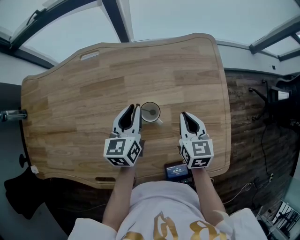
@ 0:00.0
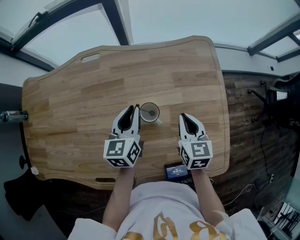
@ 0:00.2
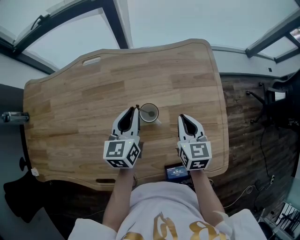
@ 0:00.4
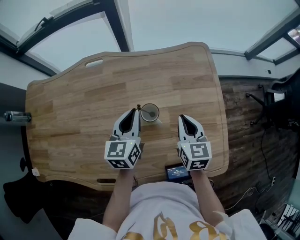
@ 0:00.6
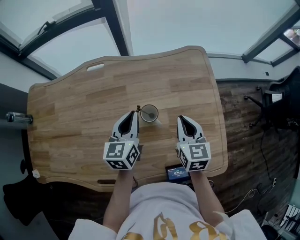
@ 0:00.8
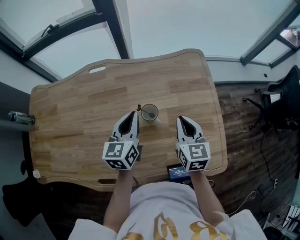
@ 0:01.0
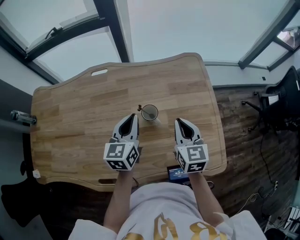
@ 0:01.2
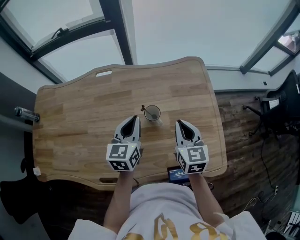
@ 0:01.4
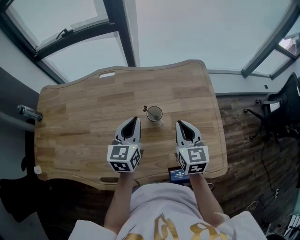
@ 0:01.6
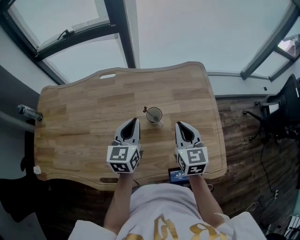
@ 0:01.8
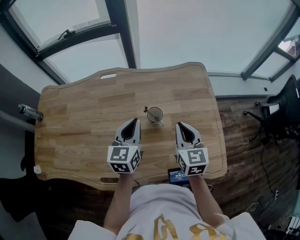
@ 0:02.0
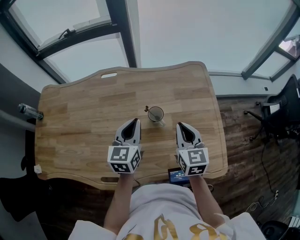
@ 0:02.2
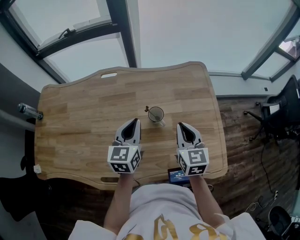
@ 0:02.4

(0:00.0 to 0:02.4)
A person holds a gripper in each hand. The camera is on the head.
0:00.0 - 0:01.2: Both grippers travel together upward and backward, about 10 cm.
0:01.2 - 0:02.4: The grippers make only small movements.

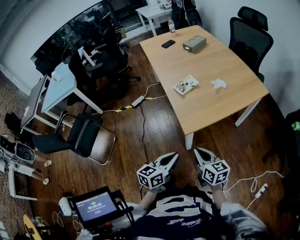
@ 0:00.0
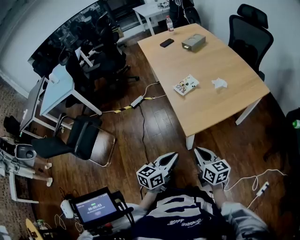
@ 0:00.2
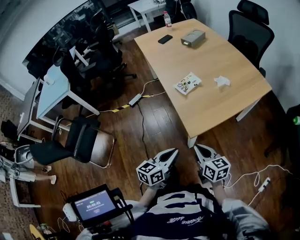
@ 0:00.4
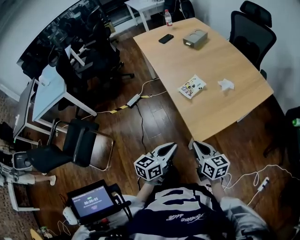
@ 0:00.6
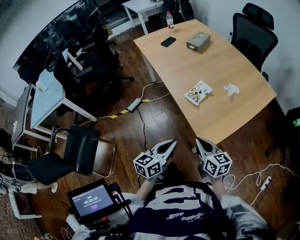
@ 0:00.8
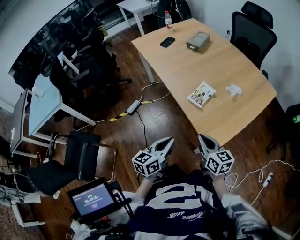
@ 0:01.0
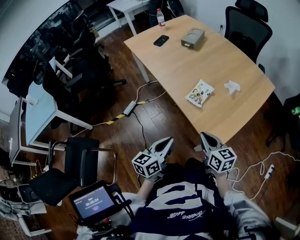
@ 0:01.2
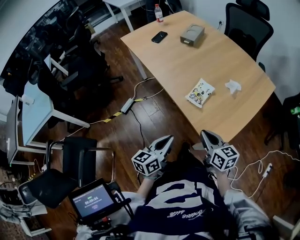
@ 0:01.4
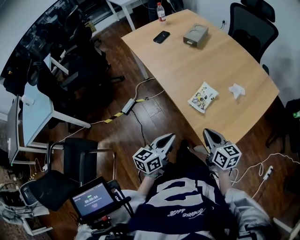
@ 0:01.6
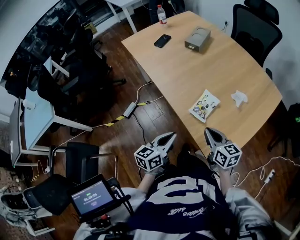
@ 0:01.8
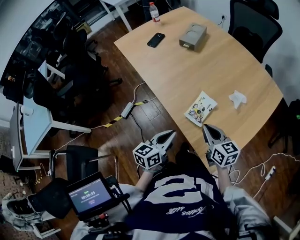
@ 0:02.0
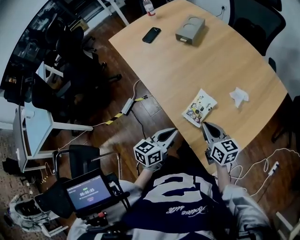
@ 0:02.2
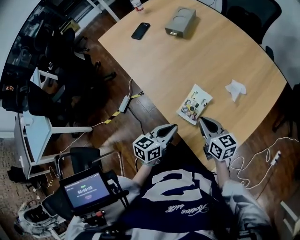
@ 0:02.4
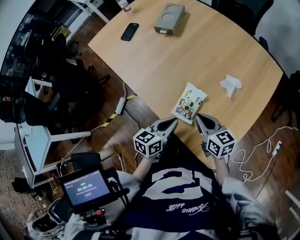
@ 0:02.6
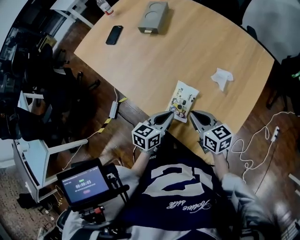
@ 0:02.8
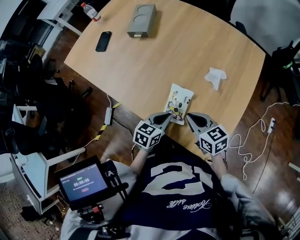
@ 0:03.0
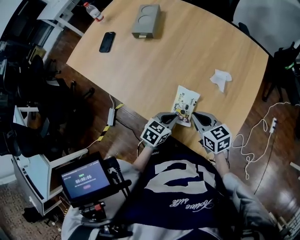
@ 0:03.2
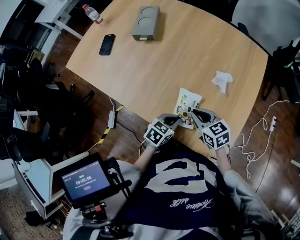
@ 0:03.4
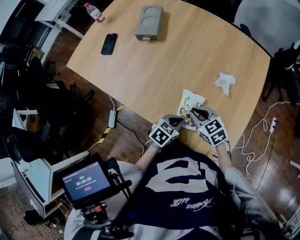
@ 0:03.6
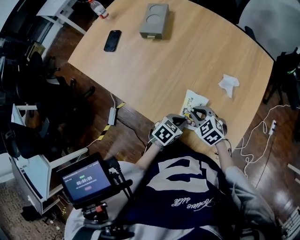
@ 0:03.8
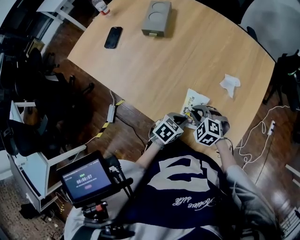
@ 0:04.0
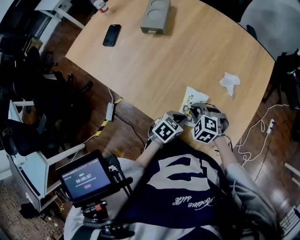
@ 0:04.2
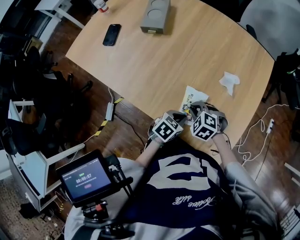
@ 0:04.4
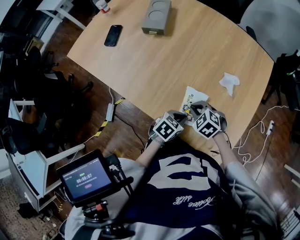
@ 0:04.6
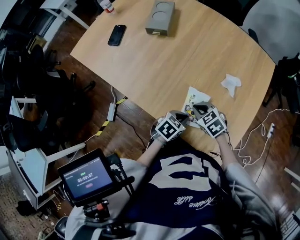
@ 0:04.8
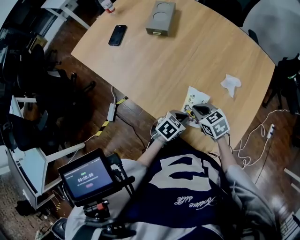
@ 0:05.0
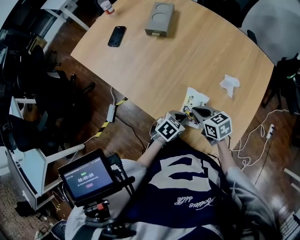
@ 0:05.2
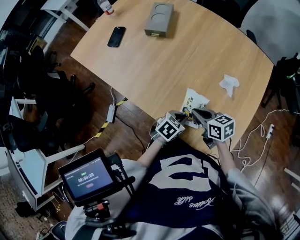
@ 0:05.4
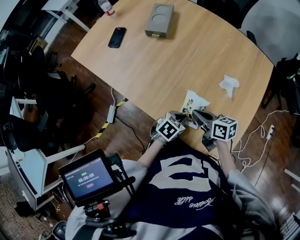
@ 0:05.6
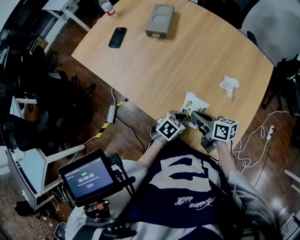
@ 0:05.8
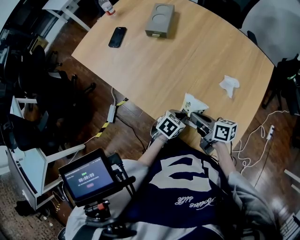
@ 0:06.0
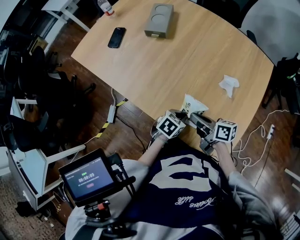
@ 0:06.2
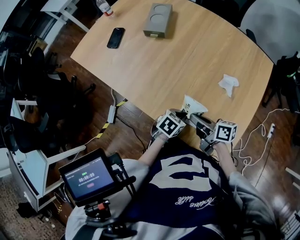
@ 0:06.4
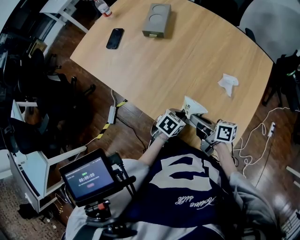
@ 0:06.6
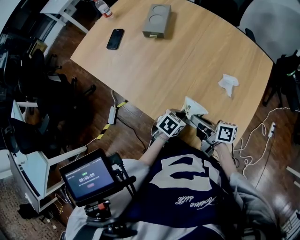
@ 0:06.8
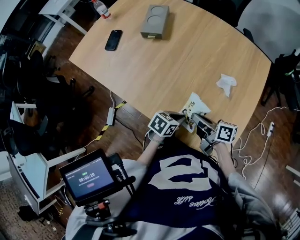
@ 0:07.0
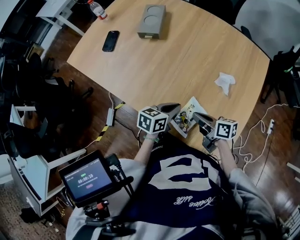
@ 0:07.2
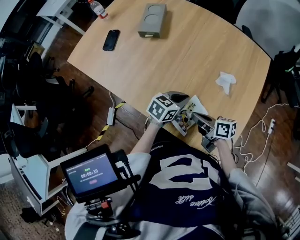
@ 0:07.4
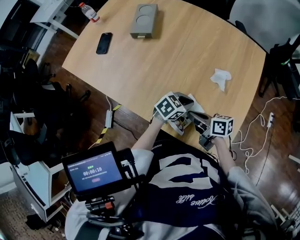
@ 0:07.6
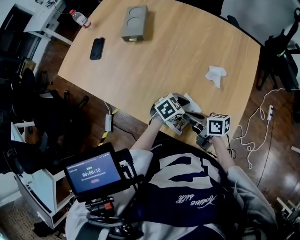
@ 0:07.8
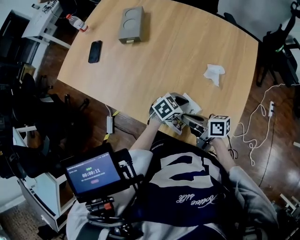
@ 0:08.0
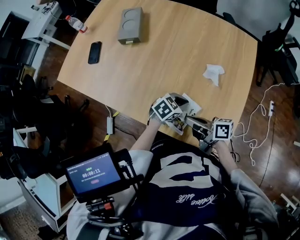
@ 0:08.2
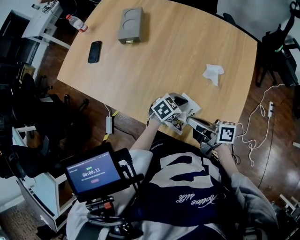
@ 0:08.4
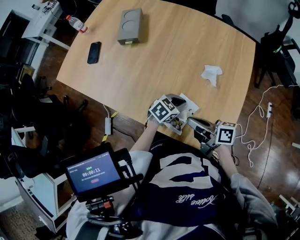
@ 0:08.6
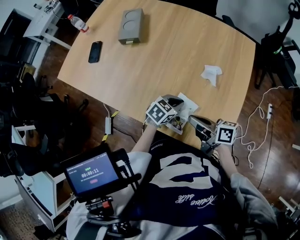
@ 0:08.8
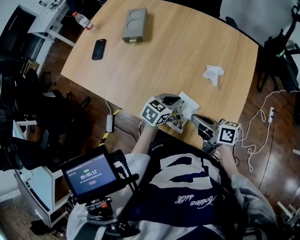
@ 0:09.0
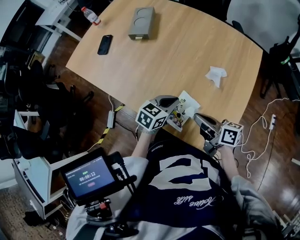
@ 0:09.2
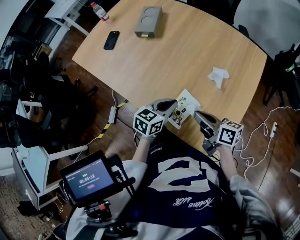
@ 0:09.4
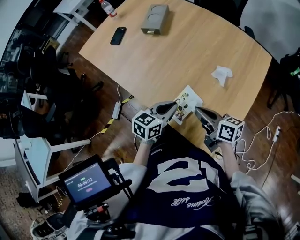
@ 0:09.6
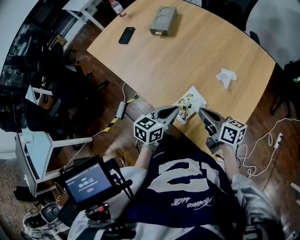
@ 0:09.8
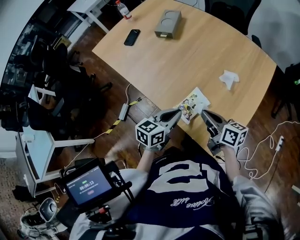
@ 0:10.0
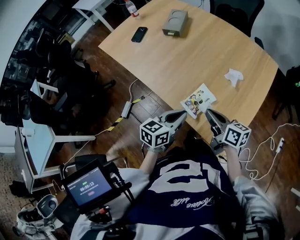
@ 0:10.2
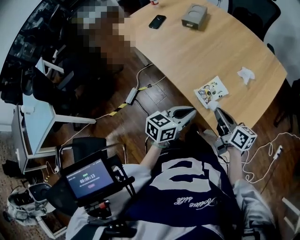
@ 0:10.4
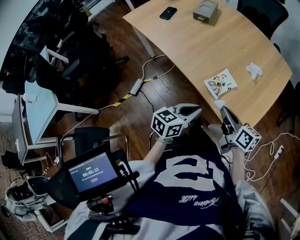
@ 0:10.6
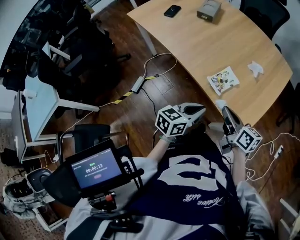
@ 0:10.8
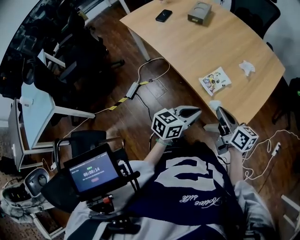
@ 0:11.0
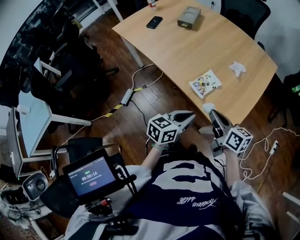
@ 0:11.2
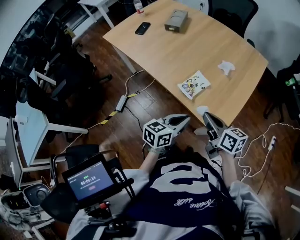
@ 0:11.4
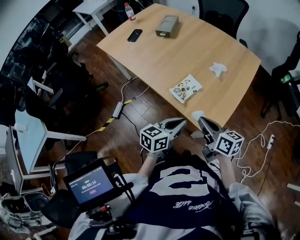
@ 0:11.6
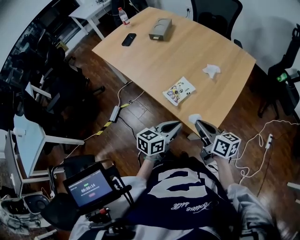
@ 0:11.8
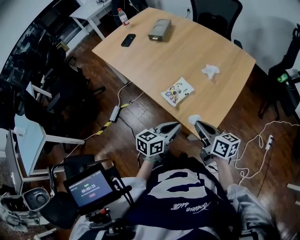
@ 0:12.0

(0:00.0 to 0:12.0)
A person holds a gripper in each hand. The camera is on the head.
0:00.0 - 0:01.6: The two grippers go roughly 35 cm forward and to the left.
0:01.6 - 0:03.0: The left gripper moves forward and downward, roughly 25 cm, and changes its angle by some 40 degrees, while the right gripper moves forward, roughly 15 cm.
0:03.0 - 0:04.4: The left gripper rotates about 20 degrees. The right gripper heads downward and to the left, covering roughly 10 cm, and points its fingers about 40 degrees further downward.
0:04.4 - 0:06.0: The right gripper travels upward by some 5 cm, and rotates around the line of its fingers by about 70 degrees, clockwise from behind.
0:06.0 - 0:07.6: The left gripper ends up about 10 cm from where it was, and swivels some 20 degrees.
0:07.6 - 0:09.0: The right gripper travels upward by about 5 cm.
0:09.0 - 0:10.4: The right gripper moves backward, some 10 cm. The left gripper is displaced backward, upward and to the left by some 25 cm, and rotates approximately 30 degrees.
0:10.4 - 0:12.0: The right gripper goes roughly 15 cm backward and to the right. Meanwhile the left gripper moves to the right and backward, some 15 cm.

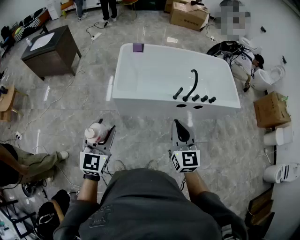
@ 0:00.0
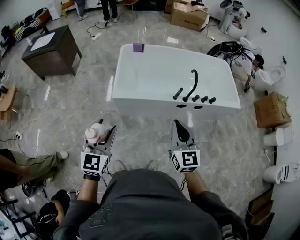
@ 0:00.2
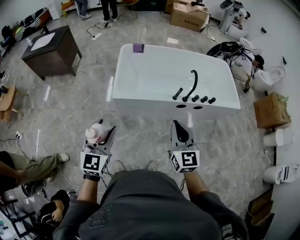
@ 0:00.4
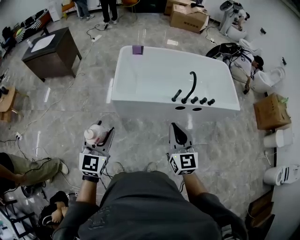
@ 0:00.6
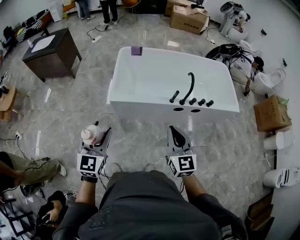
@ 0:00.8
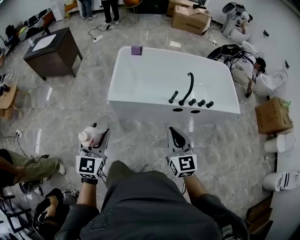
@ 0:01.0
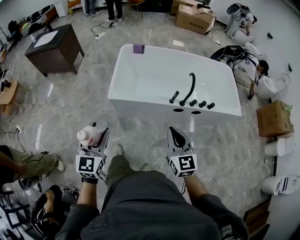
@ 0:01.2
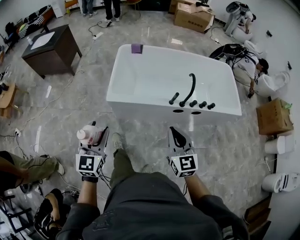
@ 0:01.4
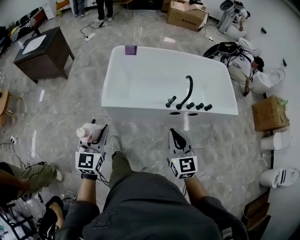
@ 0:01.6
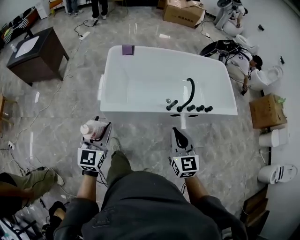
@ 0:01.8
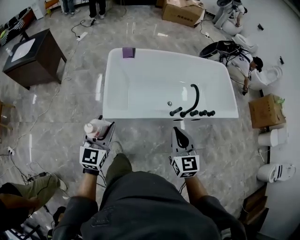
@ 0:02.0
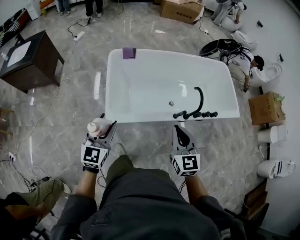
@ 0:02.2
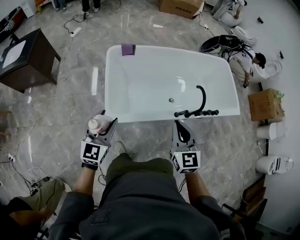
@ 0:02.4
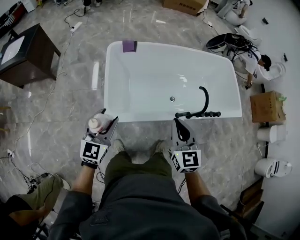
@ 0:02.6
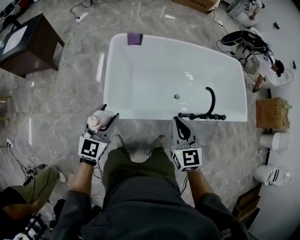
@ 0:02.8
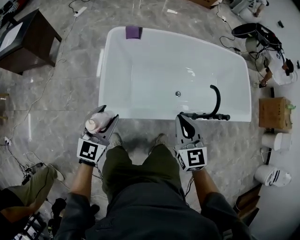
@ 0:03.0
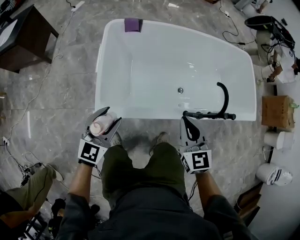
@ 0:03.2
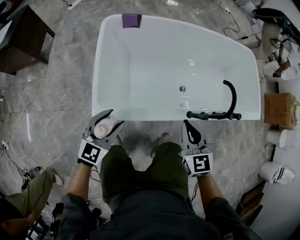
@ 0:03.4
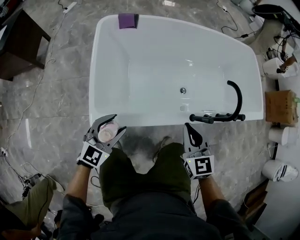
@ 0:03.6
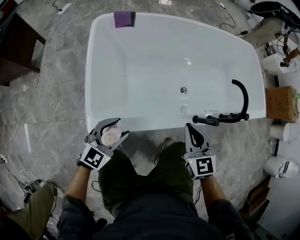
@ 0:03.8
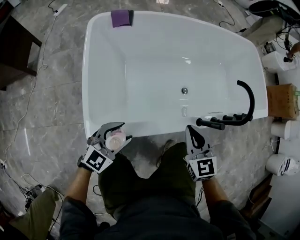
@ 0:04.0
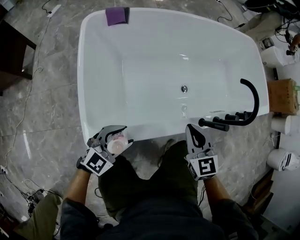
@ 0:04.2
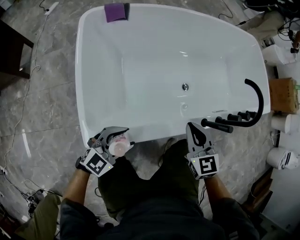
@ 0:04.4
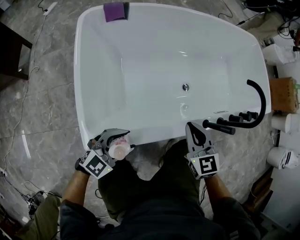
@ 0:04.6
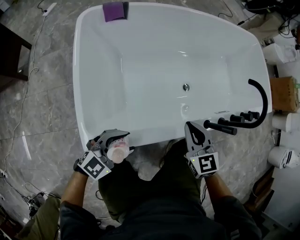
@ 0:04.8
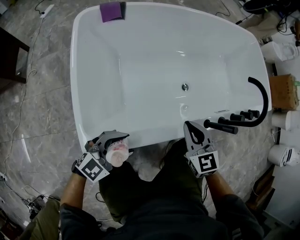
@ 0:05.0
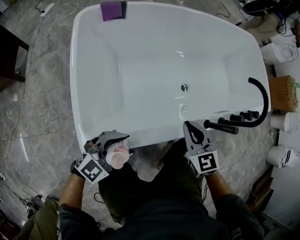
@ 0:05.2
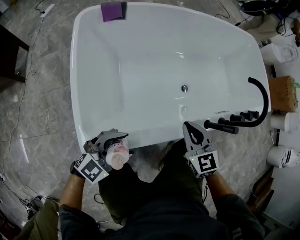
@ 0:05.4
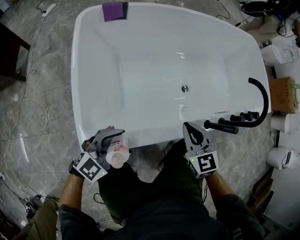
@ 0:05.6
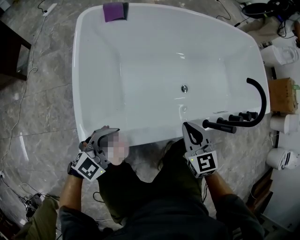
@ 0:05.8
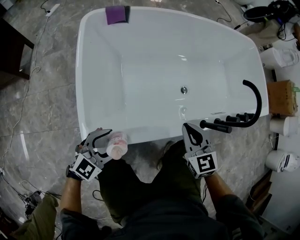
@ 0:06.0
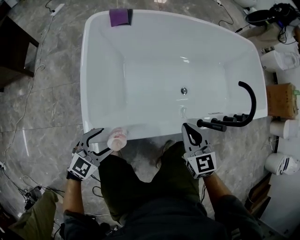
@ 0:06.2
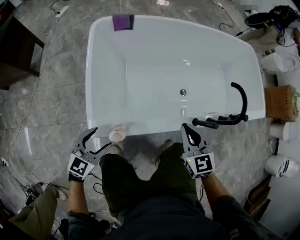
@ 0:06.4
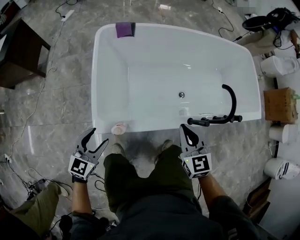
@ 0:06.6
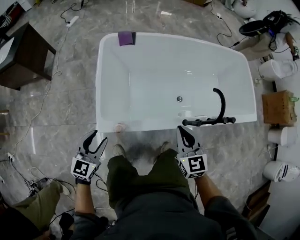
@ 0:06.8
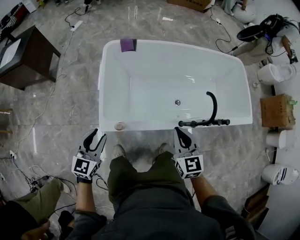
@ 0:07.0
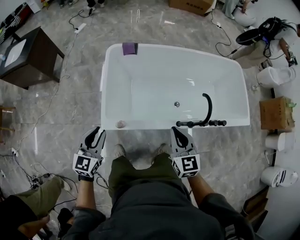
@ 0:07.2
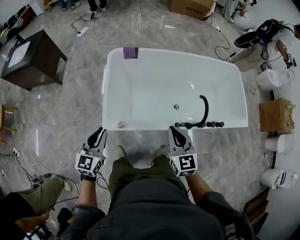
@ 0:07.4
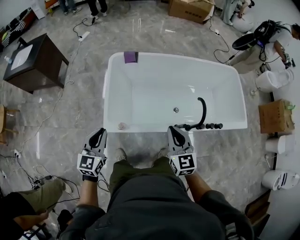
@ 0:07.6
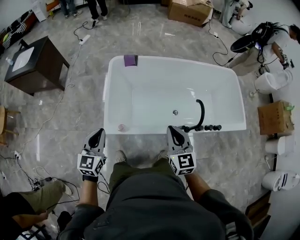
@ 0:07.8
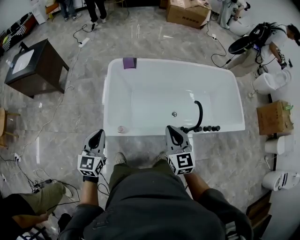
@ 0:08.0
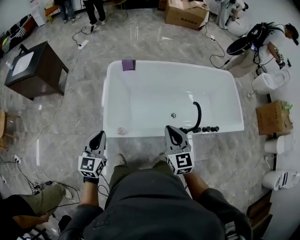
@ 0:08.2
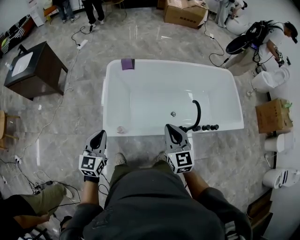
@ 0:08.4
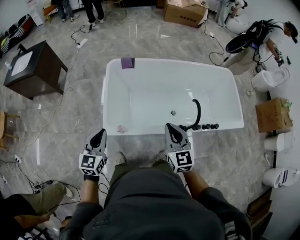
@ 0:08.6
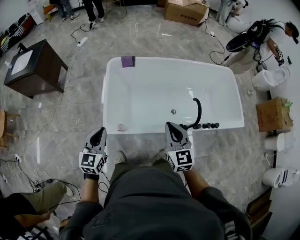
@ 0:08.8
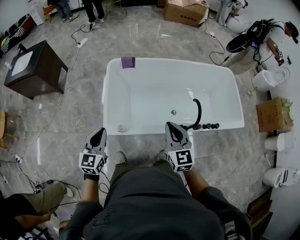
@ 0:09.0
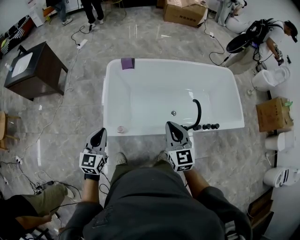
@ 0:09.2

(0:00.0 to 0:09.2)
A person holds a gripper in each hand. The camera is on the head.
0:00.0 - 0:01.6: The right gripper goes some 10 cm forward, downward and to the right; the left gripper heads forward and downward, covering roughly 10 cm.
0:01.6 - 0:03.0: The left gripper goes approximately 30 cm forward and downward. Meanwhile the right gripper goes some 25 cm forward.
0:03.0 - 0:04.6: Both grippers travel together downward, some 30 cm. The left gripper swivels roughly 40 degrees.
0:04.6 - 0:06.2: The left gripper is displaced to the left by approximately 5 cm.
0:06.2 - 0:07.6: The two grippers go roughly 35 cm upward. The left gripper swivels approximately 40 degrees, and closes.
0:07.6 - 0:09.2: There are only small adjustments of the grippers.
